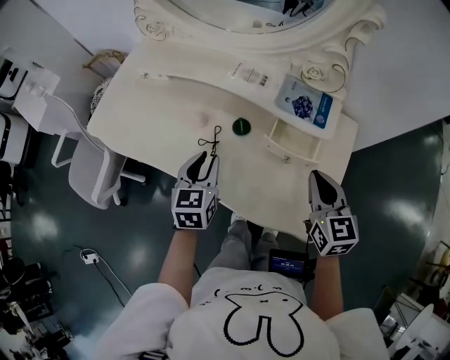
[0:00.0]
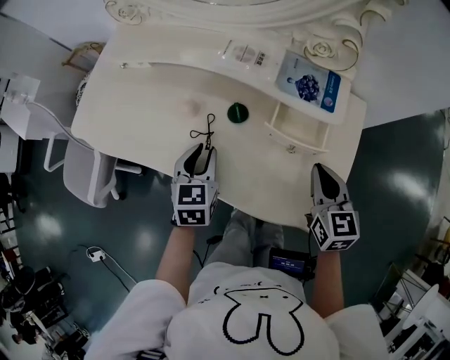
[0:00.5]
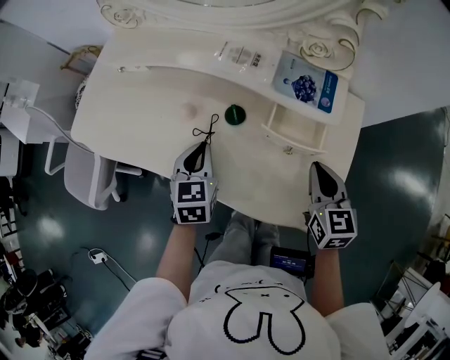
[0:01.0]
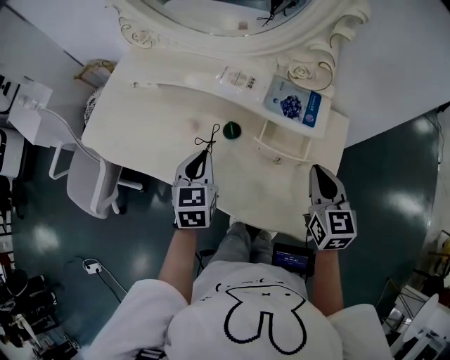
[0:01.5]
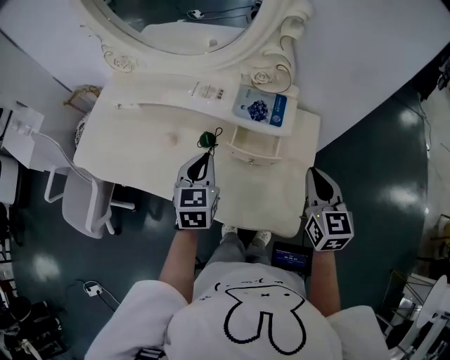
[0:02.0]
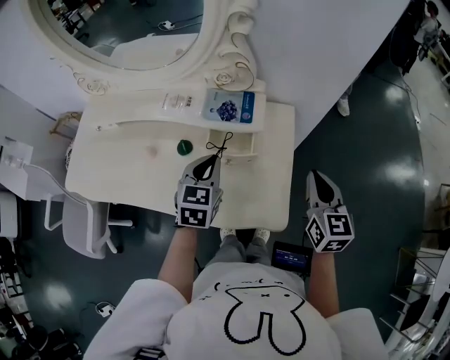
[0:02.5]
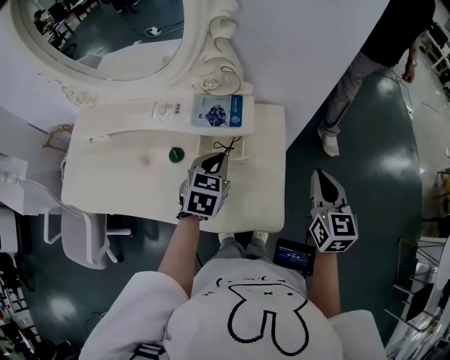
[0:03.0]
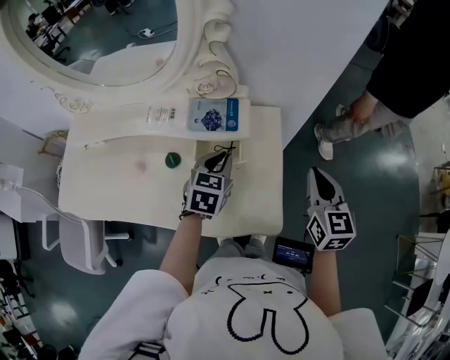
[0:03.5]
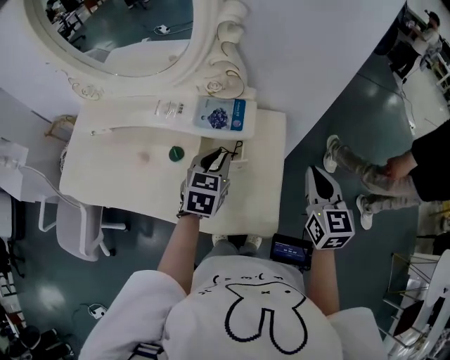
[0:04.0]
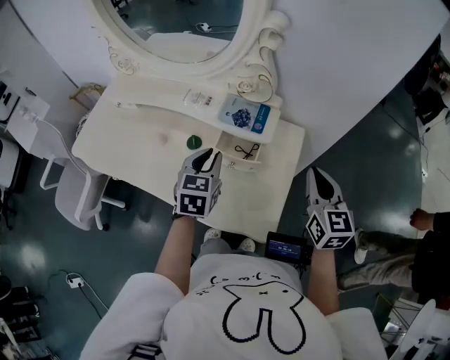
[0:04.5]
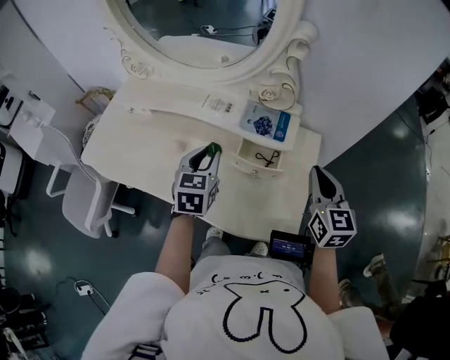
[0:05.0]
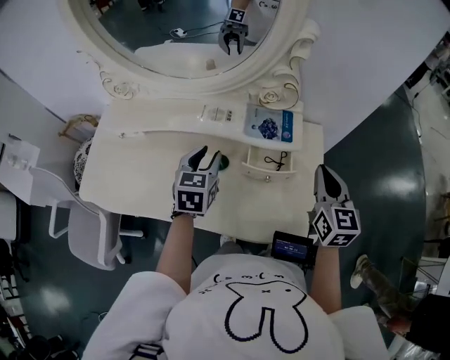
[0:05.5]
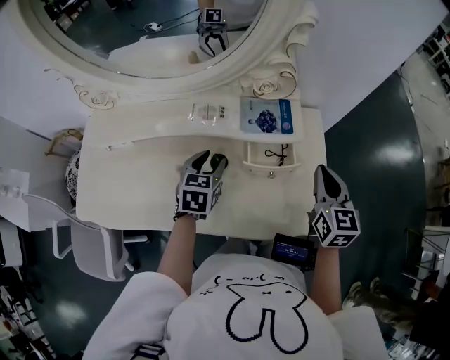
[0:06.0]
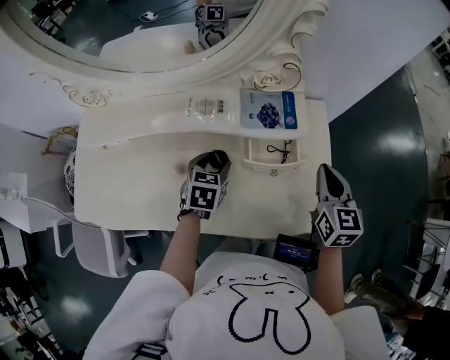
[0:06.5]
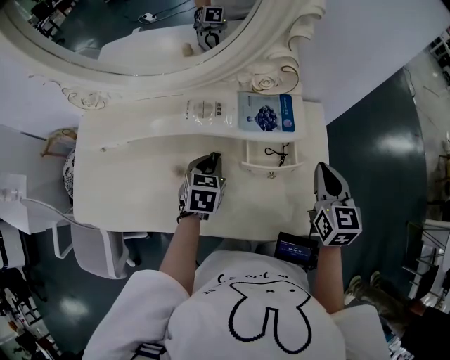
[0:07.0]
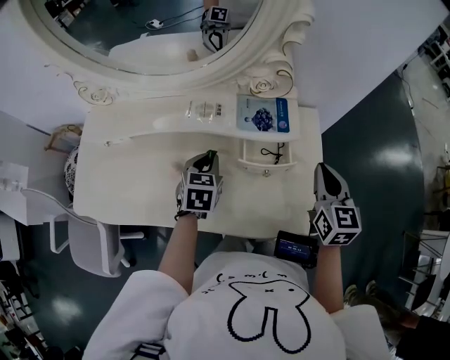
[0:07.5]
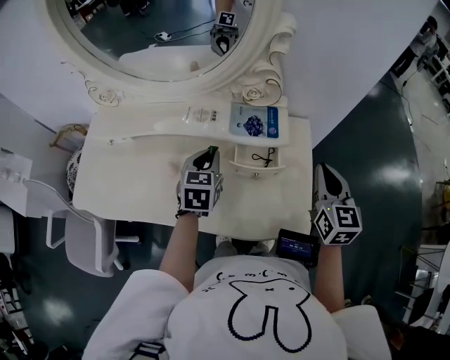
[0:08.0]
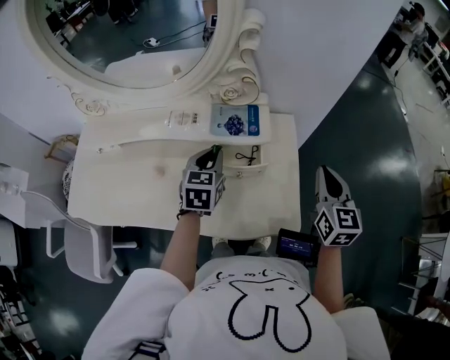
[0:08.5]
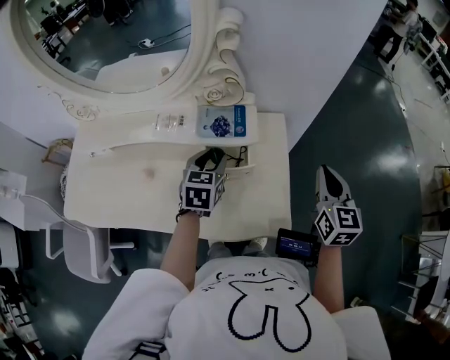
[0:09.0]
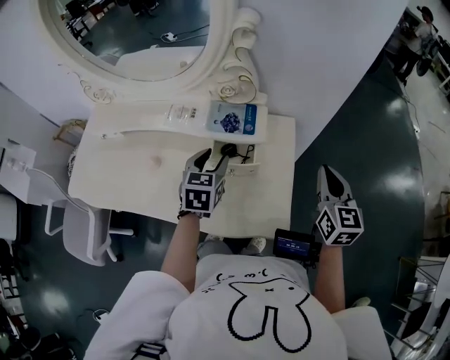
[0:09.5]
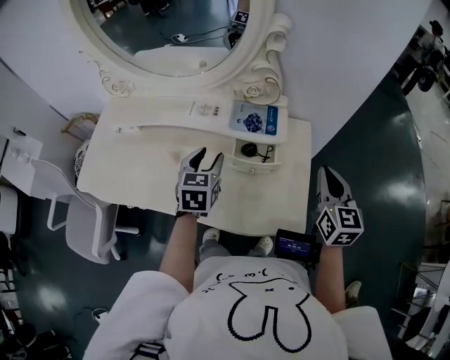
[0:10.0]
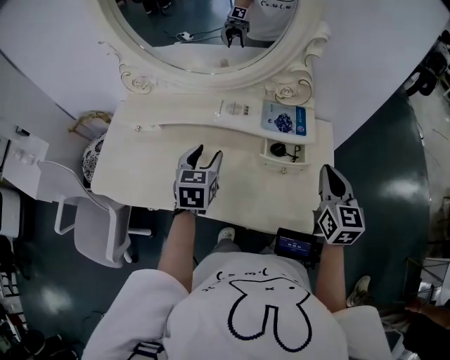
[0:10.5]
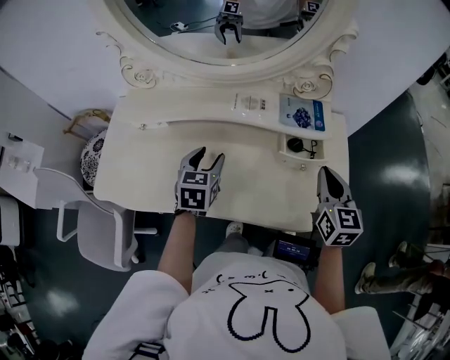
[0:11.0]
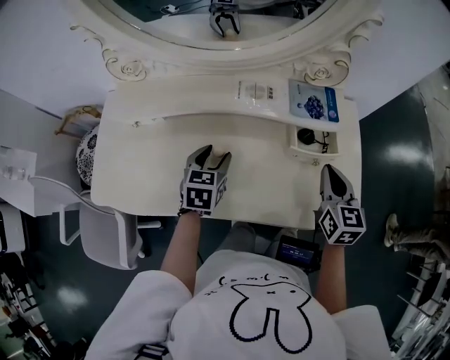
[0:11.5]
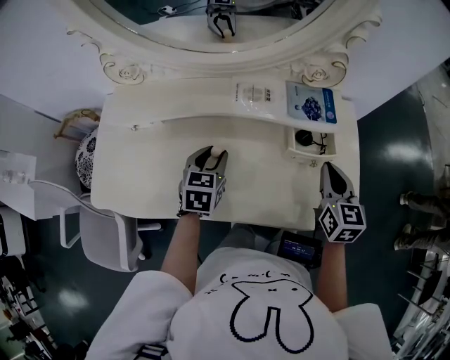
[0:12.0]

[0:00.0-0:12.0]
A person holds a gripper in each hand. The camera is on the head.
0:00.0 to 0:02.0: Both grippers travel together to the right, approximately 10 cm.
0:02.0 to 0:04.0: The left gripper goes about 15 cm to the right and forward, while the right gripper travels to the right by about 10 cm.
0:04.0 to 0:06.0: The grippers both shift to the left by about 15 cm. The left gripper opens.
0:06.0 to 0:08.0: The right gripper shifts by some 5 cm, while the left gripper moves approximately 5 cm, and closes up.
0:08.0 to 0:10.0: The right gripper moves about 10 cm to the right and comes back, while the left gripper moves some 10 cm to the right and comes back, and opens.
0:10.0 to 0:12.0: The two grippers go some 20 cm to the left and downward.

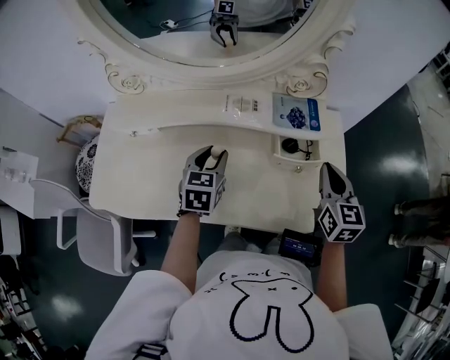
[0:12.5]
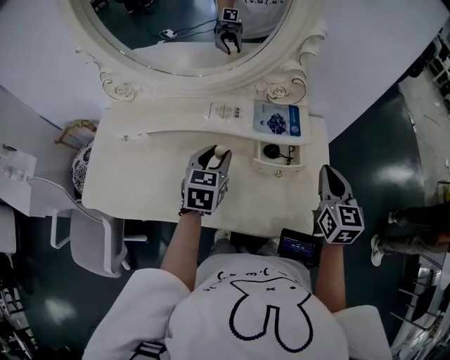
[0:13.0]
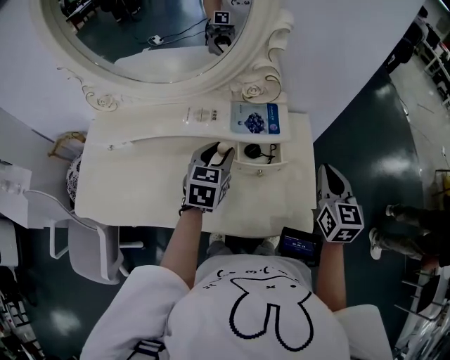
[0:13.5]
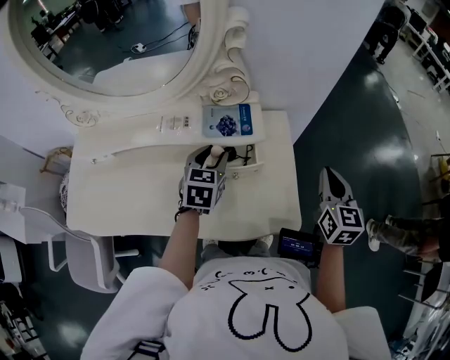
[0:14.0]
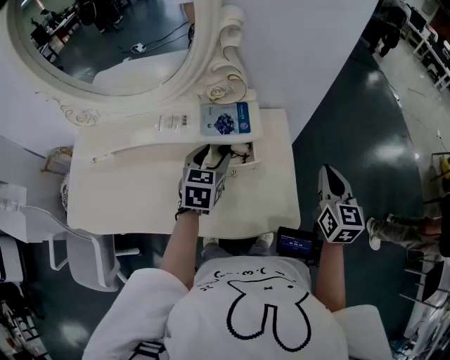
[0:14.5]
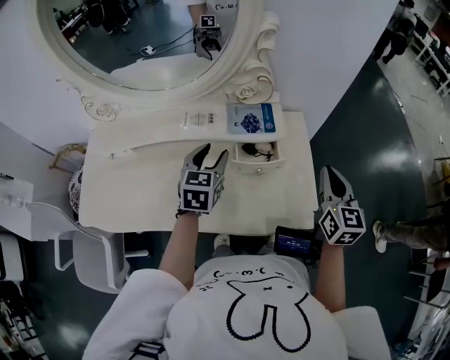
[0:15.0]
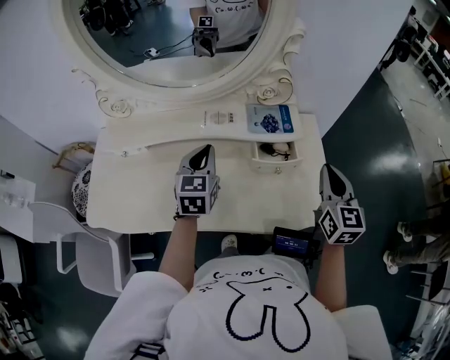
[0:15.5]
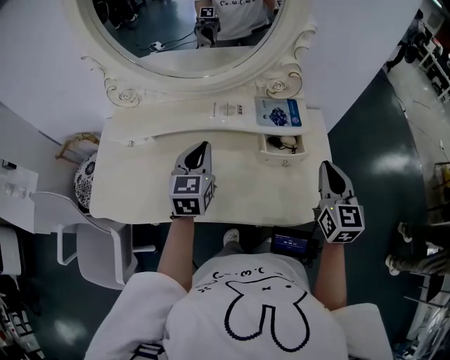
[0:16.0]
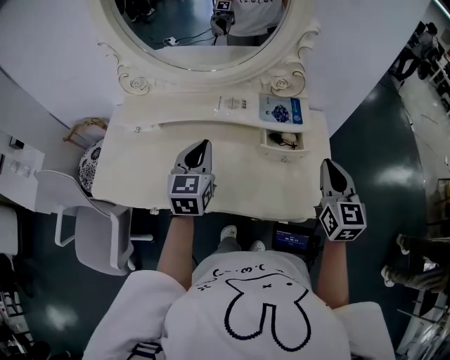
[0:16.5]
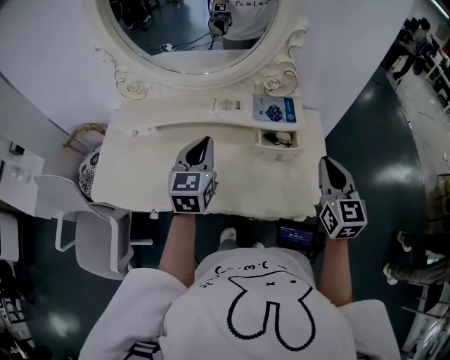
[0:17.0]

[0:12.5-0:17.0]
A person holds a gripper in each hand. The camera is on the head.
0:12.5 to 0:14.5: The two grippers go about 20 cm to the right.
0:14.5 to 0:17.0: The left gripper is displaced to the left, upward and backward by approximately 20 cm, rotates about 20 degrees, and closes. The right gripper shifts approximately 15 cm to the left.

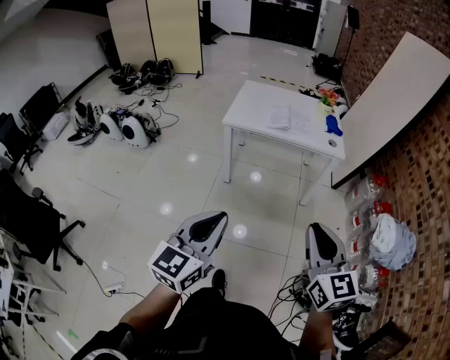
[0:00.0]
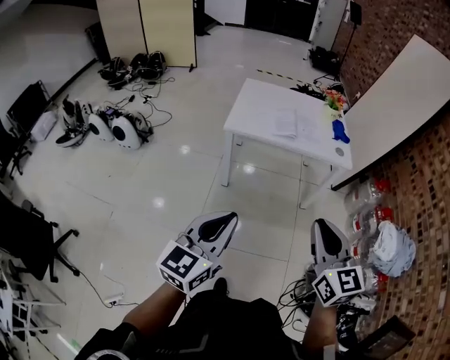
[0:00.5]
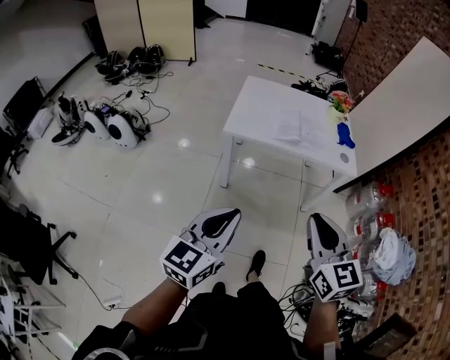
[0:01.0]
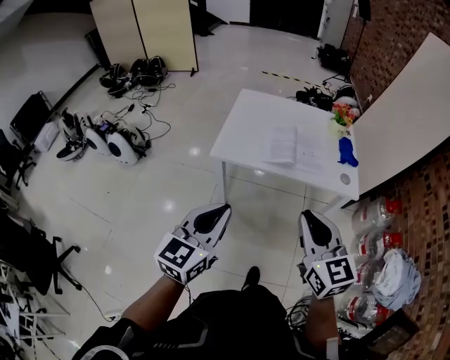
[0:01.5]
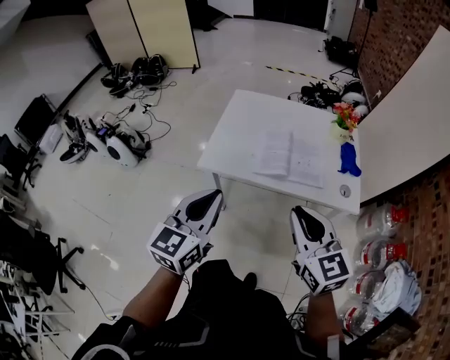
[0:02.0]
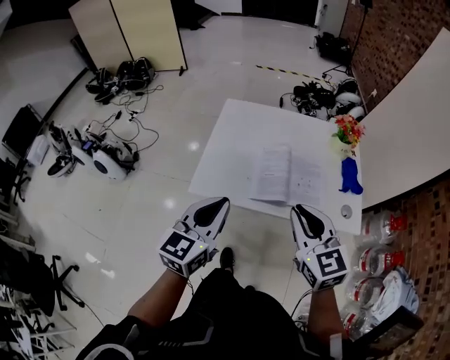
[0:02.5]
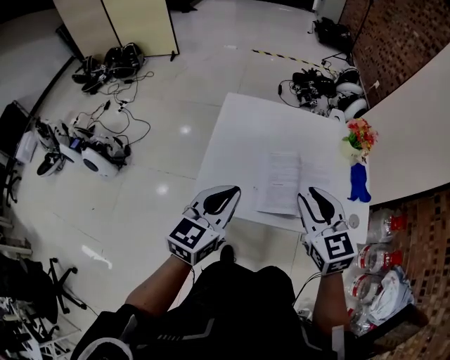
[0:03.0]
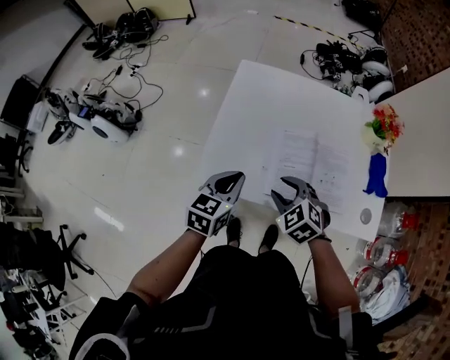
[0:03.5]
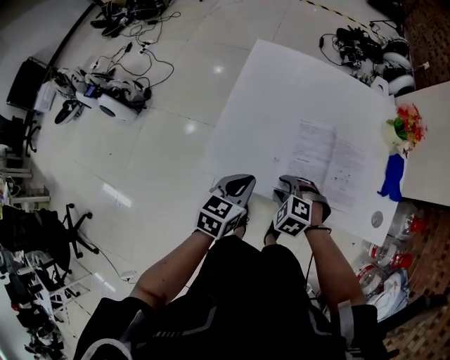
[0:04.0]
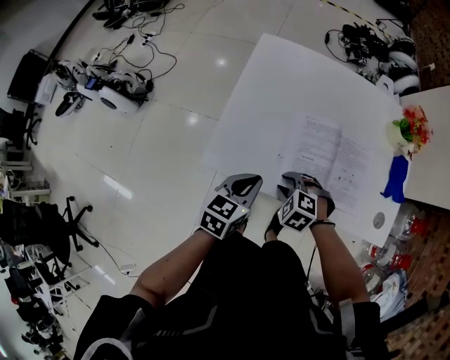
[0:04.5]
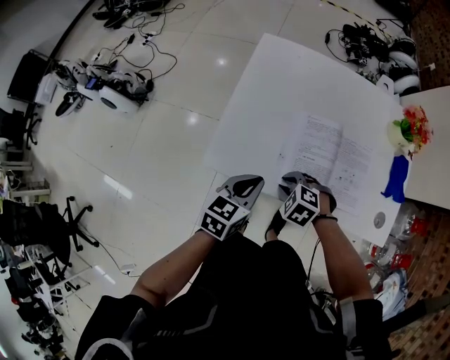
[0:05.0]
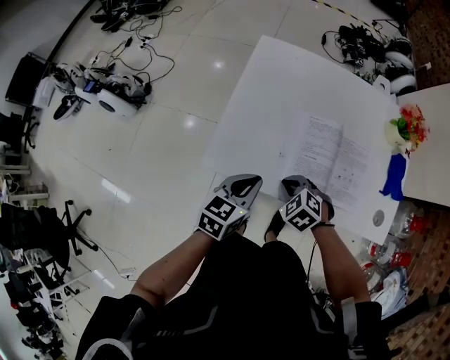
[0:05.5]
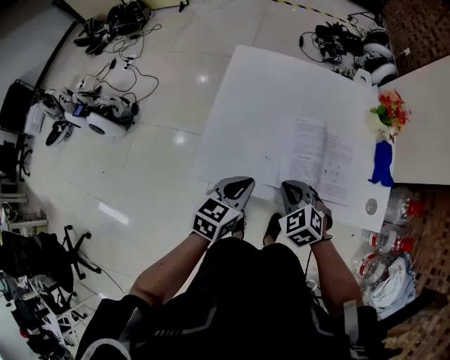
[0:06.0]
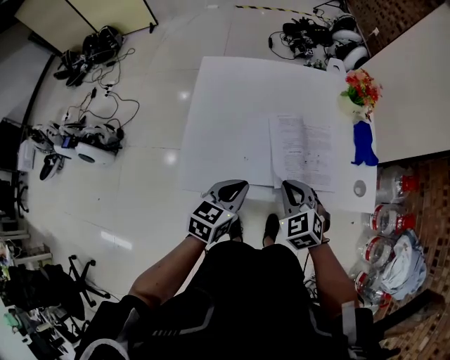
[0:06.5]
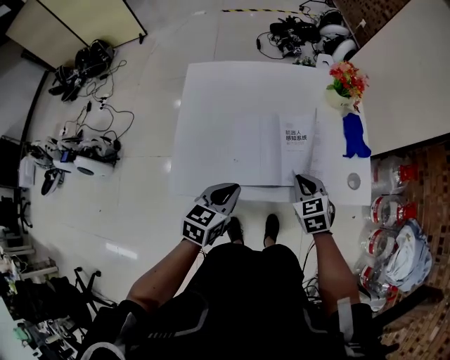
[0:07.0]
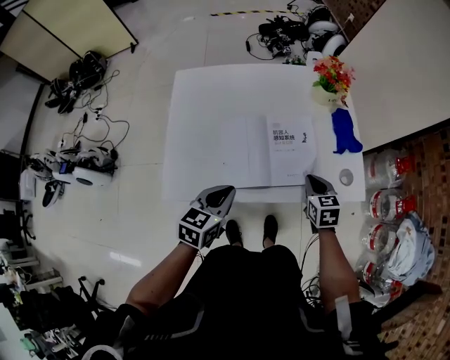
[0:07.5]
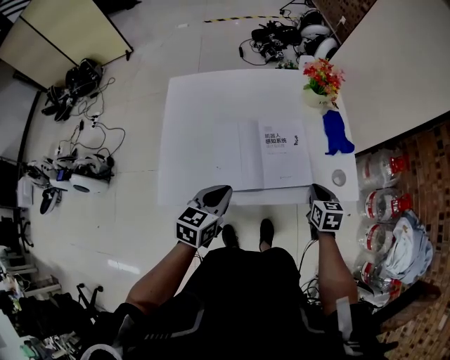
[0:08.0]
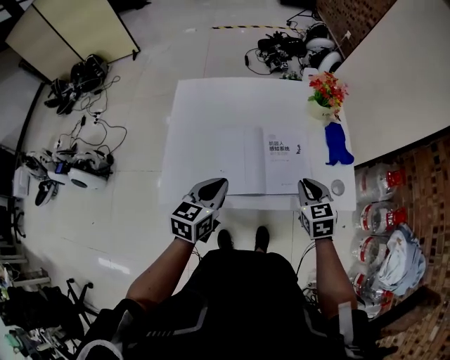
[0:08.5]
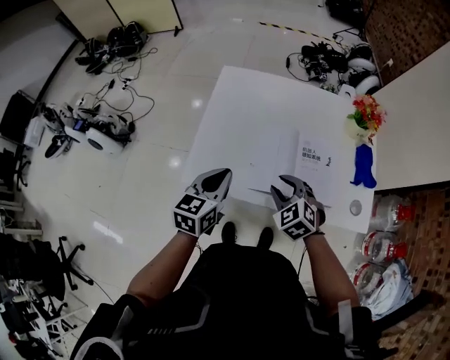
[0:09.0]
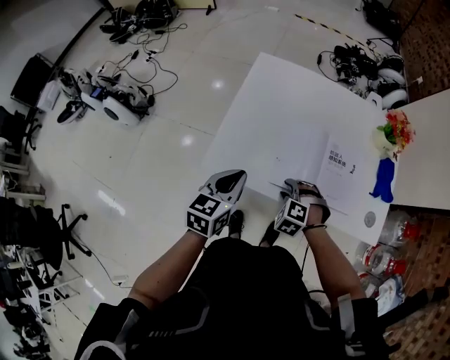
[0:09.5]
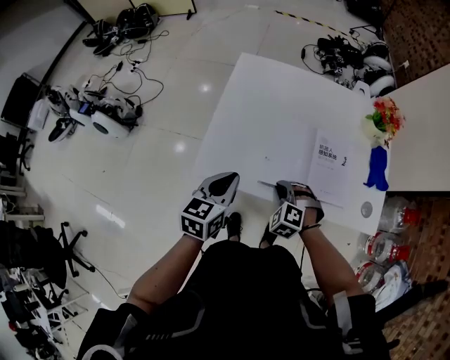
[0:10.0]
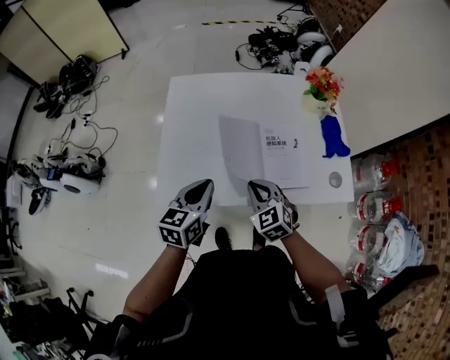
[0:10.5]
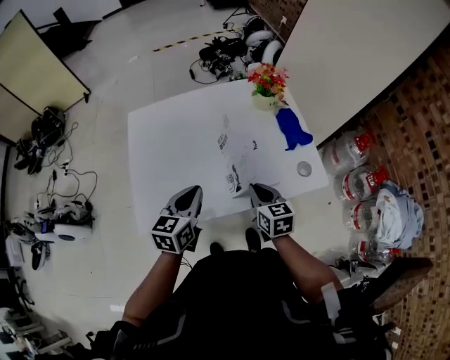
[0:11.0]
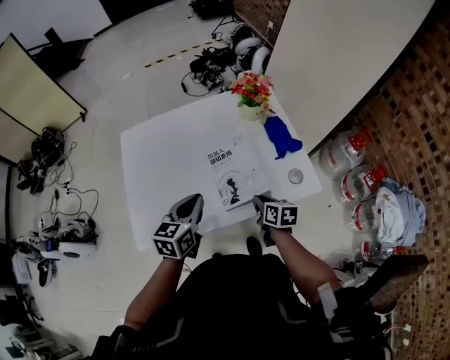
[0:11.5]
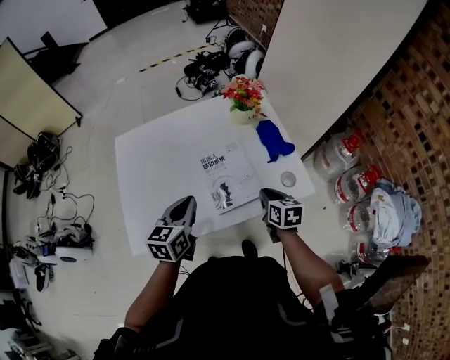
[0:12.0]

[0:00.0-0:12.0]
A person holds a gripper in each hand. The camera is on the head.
0:00.0 to 0:02.0: Both grippers are carried forward, approximately 50 cm.
0:02.0 to 0:04.0: The right gripper moves downward and forward, about 40 cm, points its fingers approximately 50 degrees further downward, and opens, while the left gripper travels forward and downward by roughly 35 cm, and changes its angle by some 30 degrees.
0:04.0 to 0:06.0: The right gripper heads upward, covering about 5 cm, turns by some 30 degrees, and closes its fingers.
0:06.0 to 0:08.0: The right gripper shifts about 30 cm to the right, and rotates around the line of its fingers by some 60 degrees, clockwise from behind; the left gripper goes approximately 10 cm to the right.
0:08.0 to 0:10.0: The right gripper goes upward and returns, roughly 10 cm each way, rolls counterclockwise, seen from behind, by roughly 80 degrees, and opens, then closes once more, while the left gripper moves roughly 15 cm, and swivels roughly 20 degrees.
0:10.0 to 0:12.0: The left gripper heads to the right and forward, covering some 20 cm; the right gripper moves to the right, some 30 cm, and twists approximately 100 degrees clockwise, seen from behind.
